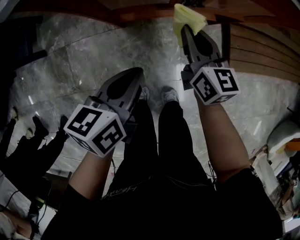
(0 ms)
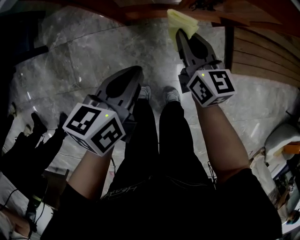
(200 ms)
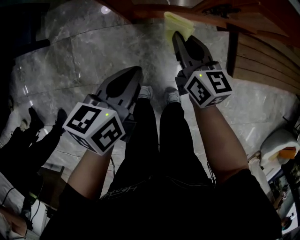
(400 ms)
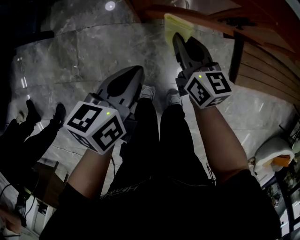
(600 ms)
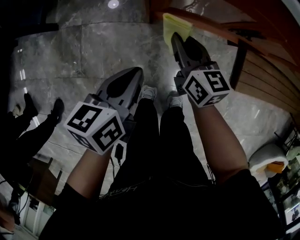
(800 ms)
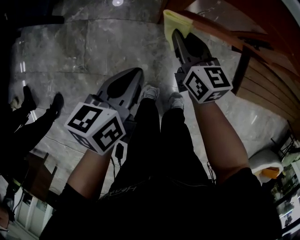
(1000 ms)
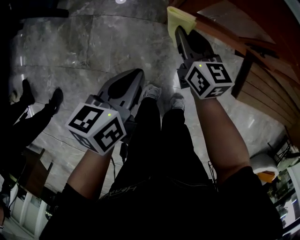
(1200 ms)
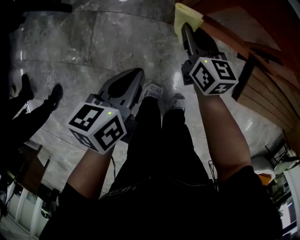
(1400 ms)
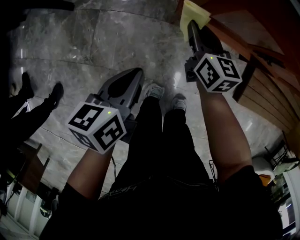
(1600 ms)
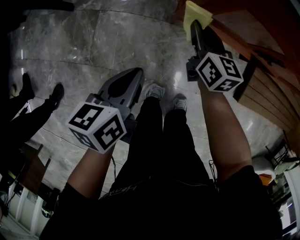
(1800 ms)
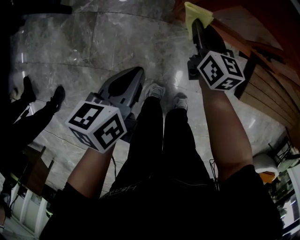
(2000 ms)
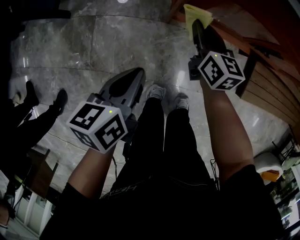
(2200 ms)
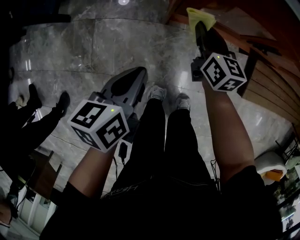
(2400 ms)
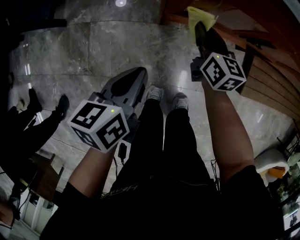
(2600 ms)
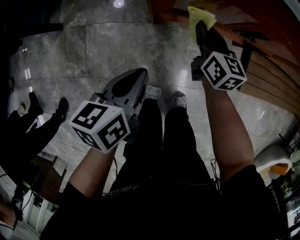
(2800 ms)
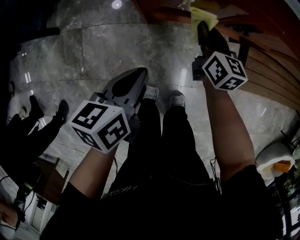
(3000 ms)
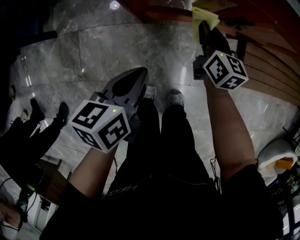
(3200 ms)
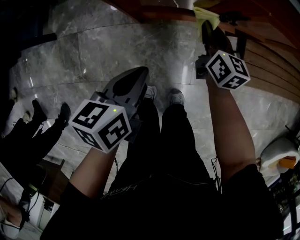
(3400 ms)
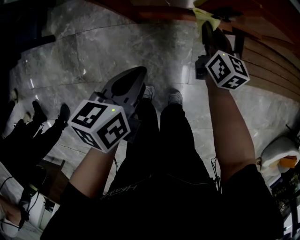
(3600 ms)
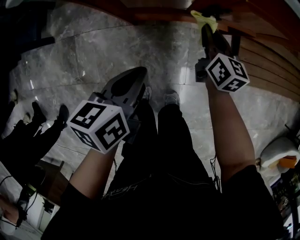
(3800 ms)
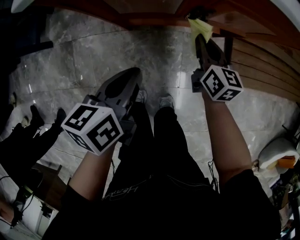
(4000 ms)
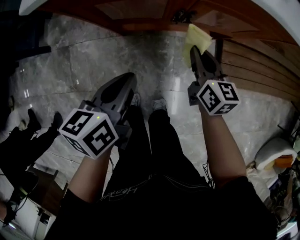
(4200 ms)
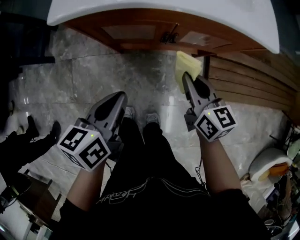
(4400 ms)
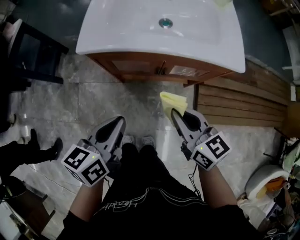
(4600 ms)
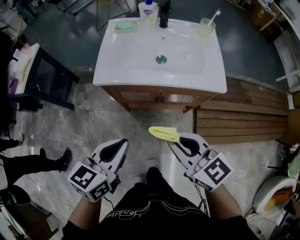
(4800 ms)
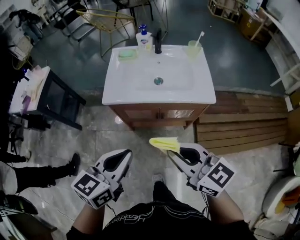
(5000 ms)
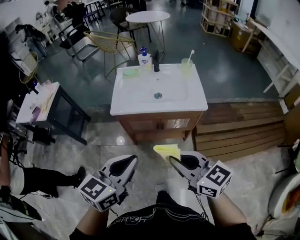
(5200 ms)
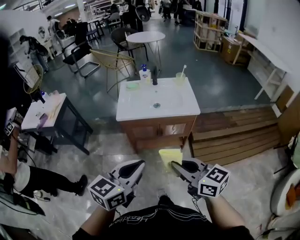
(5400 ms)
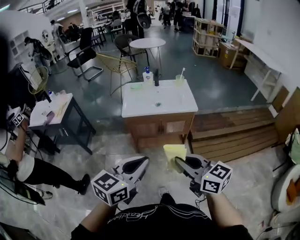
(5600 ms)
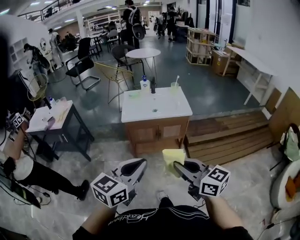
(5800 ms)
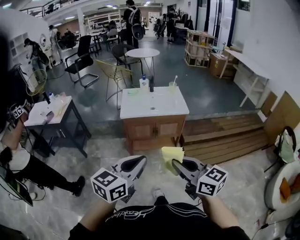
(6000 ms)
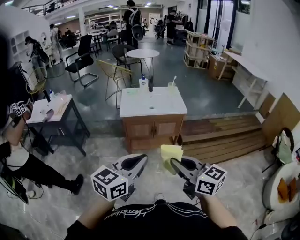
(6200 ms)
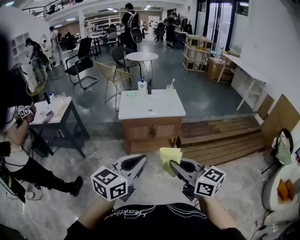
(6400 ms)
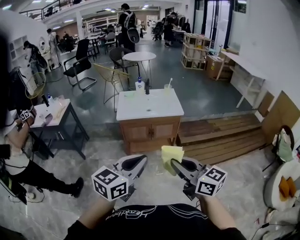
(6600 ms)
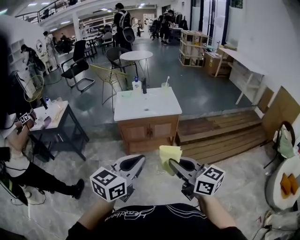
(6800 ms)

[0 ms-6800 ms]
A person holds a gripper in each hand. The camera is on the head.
0 ms to 1400 ms: Both grippers move to the left, approximately 20 cm. The right gripper turns by roughly 20 degrees; the left gripper changes its angle by some 20 degrees.
1400 ms to 2800 ms: The left gripper goes approximately 10 cm to the right. The right gripper shifts roughly 15 cm to the right.
2800 ms to 4000 ms: The two grippers go some 15 cm to the right.
4000 ms to 5400 ms: Both grippers move upward and backward, roughly 60 cm. The left gripper changes its angle by roughly 50 degrees; the right gripper rotates about 40 degrees.
5400 ms to 6800 ms: Both grippers travel together backward and upward, approximately 20 cm.

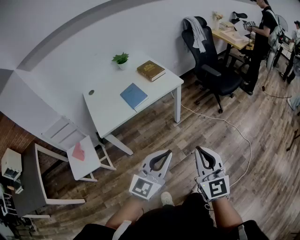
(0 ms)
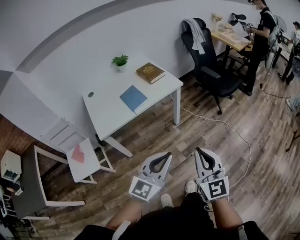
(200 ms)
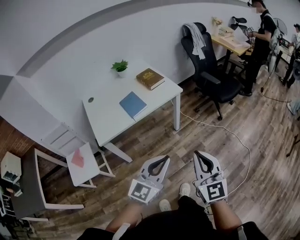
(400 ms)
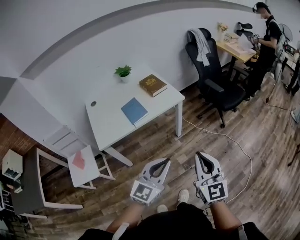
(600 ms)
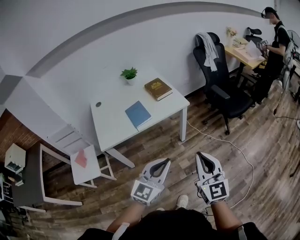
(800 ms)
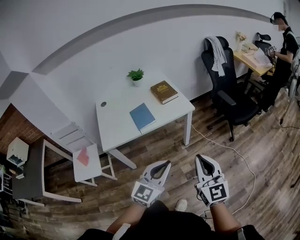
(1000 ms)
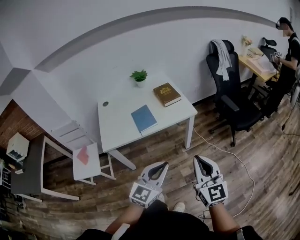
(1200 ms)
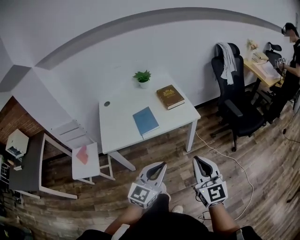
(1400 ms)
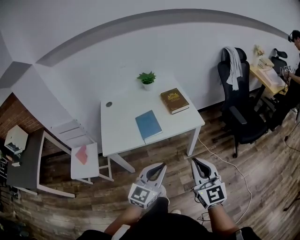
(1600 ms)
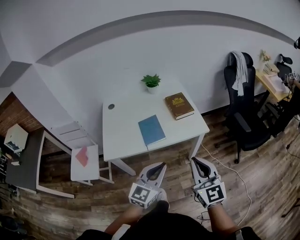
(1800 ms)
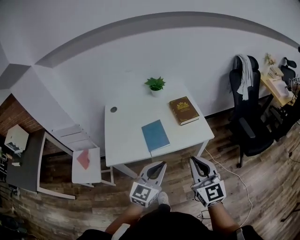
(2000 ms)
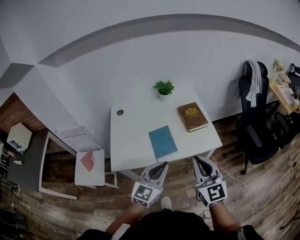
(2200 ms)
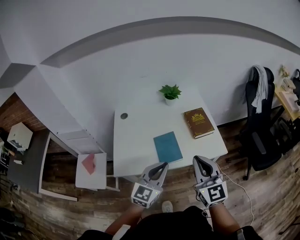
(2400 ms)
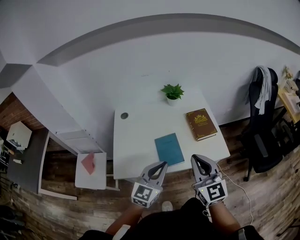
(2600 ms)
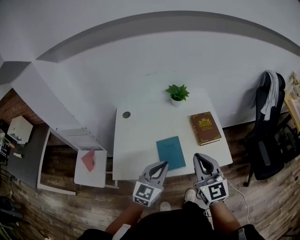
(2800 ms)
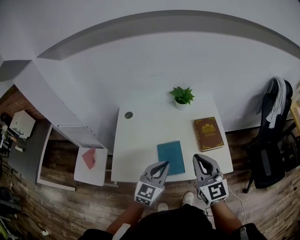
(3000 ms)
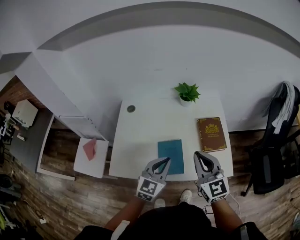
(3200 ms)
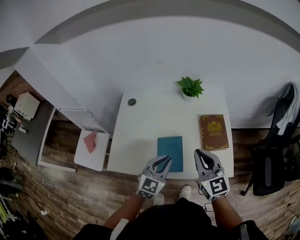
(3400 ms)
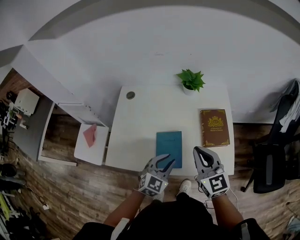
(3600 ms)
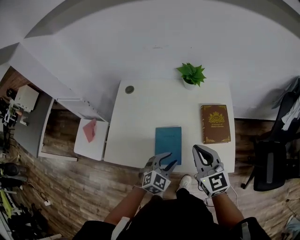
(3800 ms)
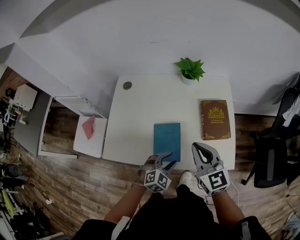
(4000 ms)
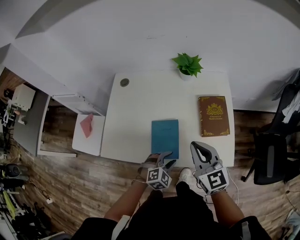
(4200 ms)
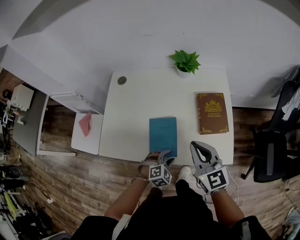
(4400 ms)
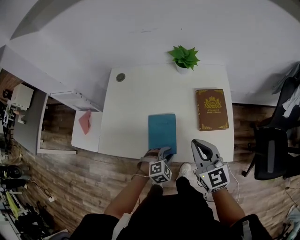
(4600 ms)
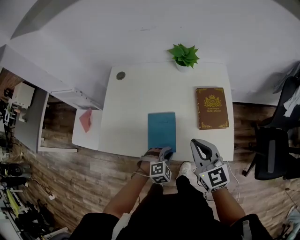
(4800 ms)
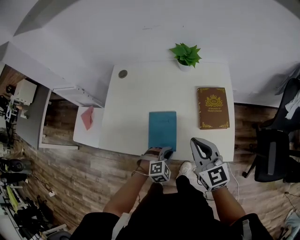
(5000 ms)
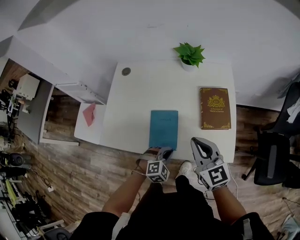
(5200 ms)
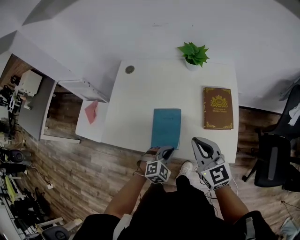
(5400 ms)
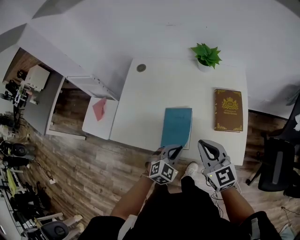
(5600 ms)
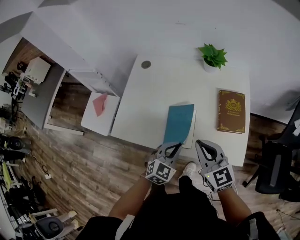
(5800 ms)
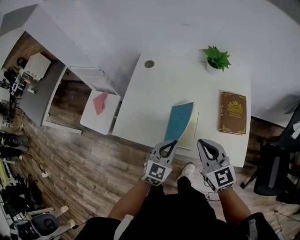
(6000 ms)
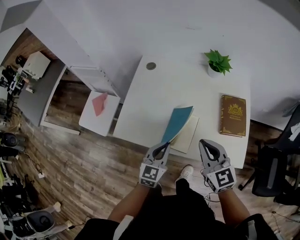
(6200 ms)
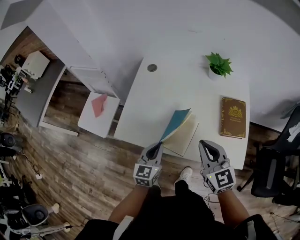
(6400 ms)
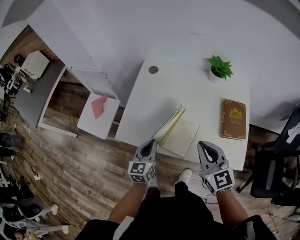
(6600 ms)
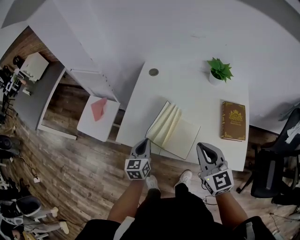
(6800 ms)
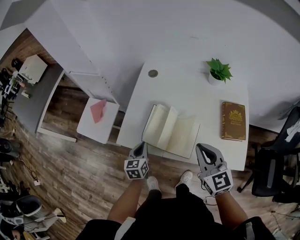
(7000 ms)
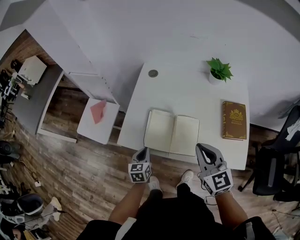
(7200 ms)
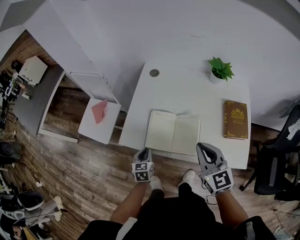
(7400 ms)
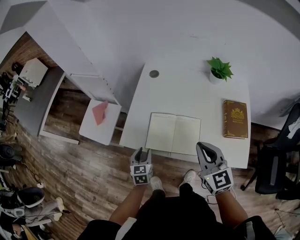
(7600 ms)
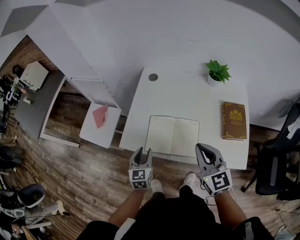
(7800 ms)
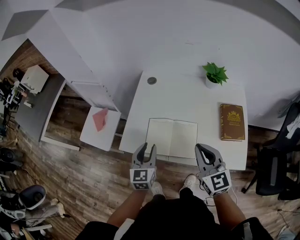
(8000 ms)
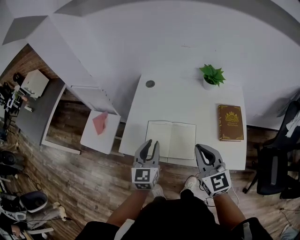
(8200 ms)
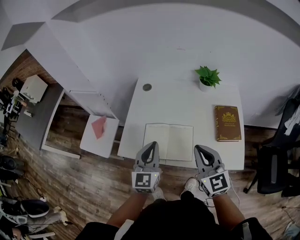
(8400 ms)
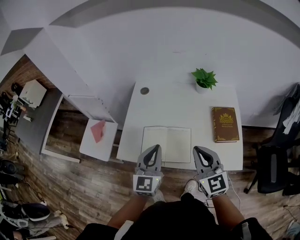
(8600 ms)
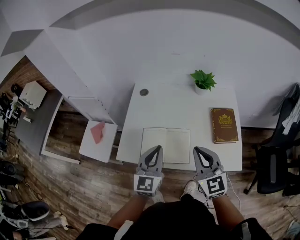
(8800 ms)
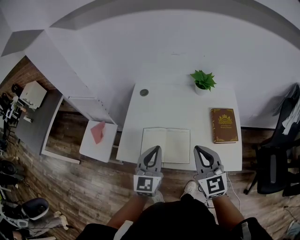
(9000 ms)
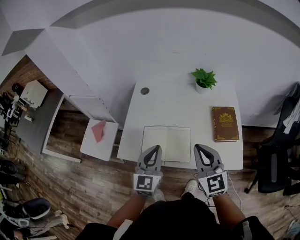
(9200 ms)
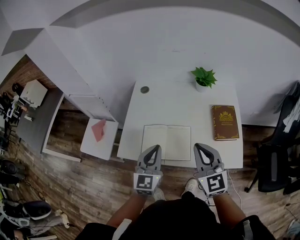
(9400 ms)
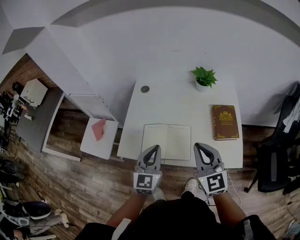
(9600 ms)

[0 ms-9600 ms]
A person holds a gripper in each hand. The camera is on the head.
0 ms to 1600 ms: Both grippers travel together forward, about 25 cm. The left gripper rotates some 20 degrees. Meanwhile the right gripper changes its angle by approximately 20 degrees.
1600 ms to 3200 ms: The grippers both shift forward by some 35 cm. The left gripper rotates roughly 20 degrees; the right gripper swivels roughly 20 degrees.
3200 ms to 4800 ms: The right gripper is displaced downward by about 10 cm; the left gripper shifts roughly 25 cm downward, angles its fingers downward, by roughly 40 degrees, and opens its fingers.
4800 ms to 6400 ms: The left gripper heads to the left and upward, covering some 20 cm, twists some 60 degrees counterclockwise, seen from behind, and closes up. Meanwhile the right gripper moves to the left, some 10 cm.
6400 ms to 8000 ms: The left gripper goes about 5 cm to the left, goes downward and returns, roughly 10 cm each way, and opens.
8000 ms to 9600 ms: The left gripper moves to the right and upward, about 10 cm, and closes up.

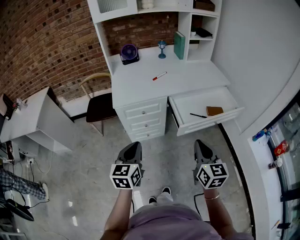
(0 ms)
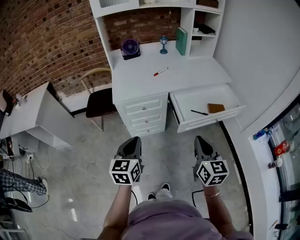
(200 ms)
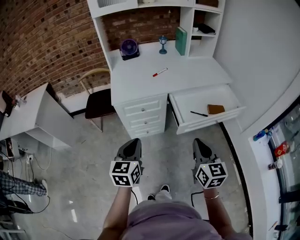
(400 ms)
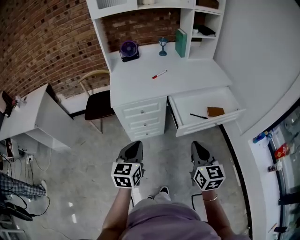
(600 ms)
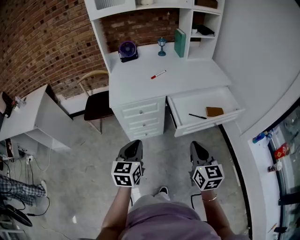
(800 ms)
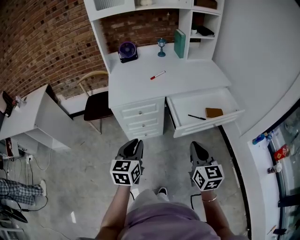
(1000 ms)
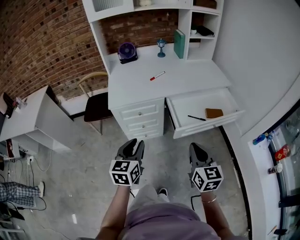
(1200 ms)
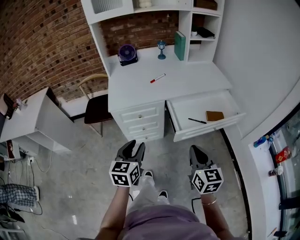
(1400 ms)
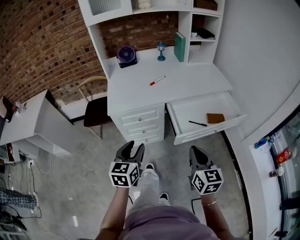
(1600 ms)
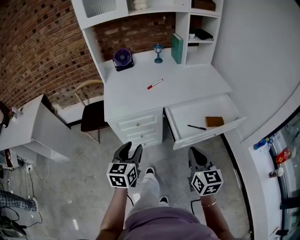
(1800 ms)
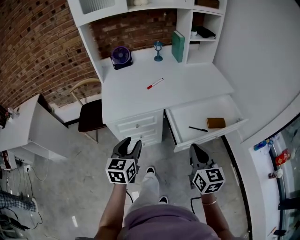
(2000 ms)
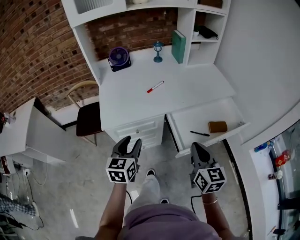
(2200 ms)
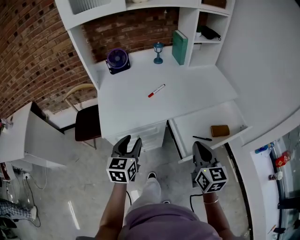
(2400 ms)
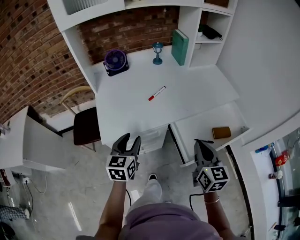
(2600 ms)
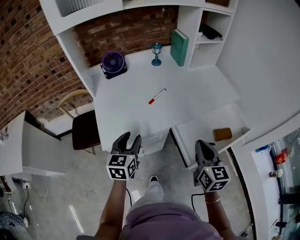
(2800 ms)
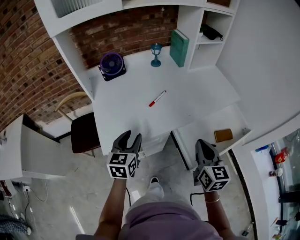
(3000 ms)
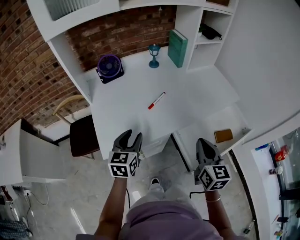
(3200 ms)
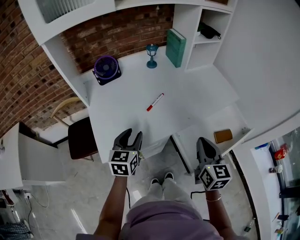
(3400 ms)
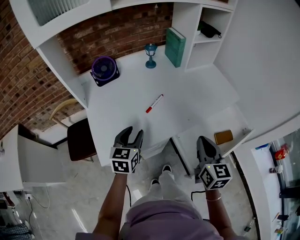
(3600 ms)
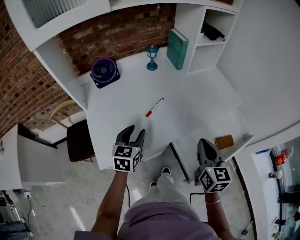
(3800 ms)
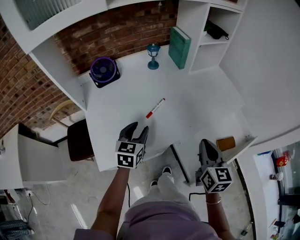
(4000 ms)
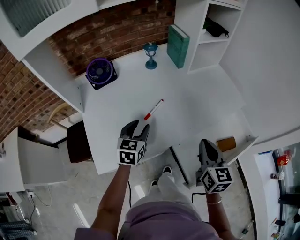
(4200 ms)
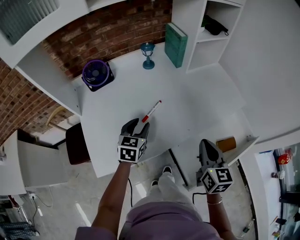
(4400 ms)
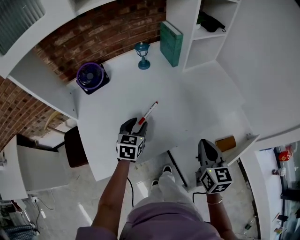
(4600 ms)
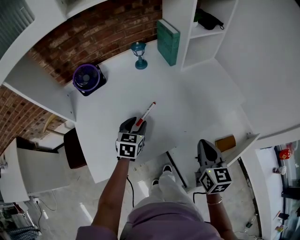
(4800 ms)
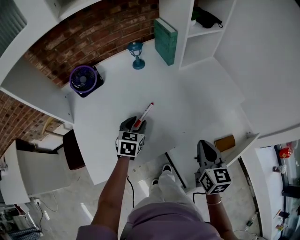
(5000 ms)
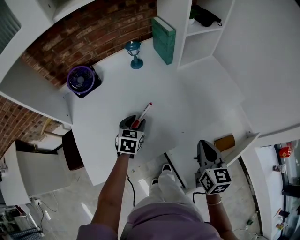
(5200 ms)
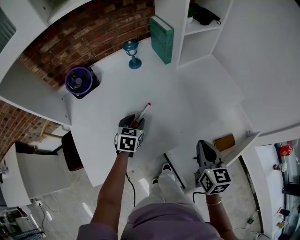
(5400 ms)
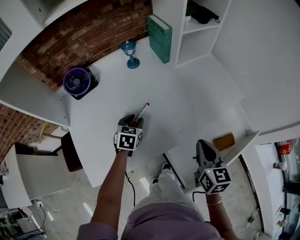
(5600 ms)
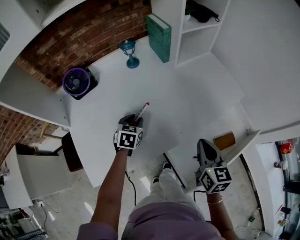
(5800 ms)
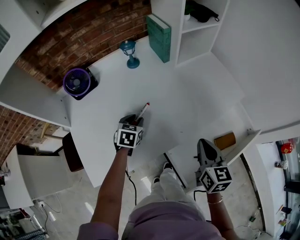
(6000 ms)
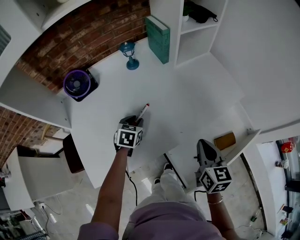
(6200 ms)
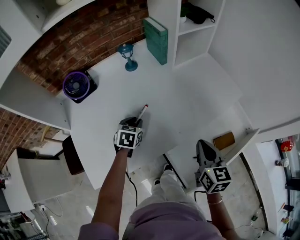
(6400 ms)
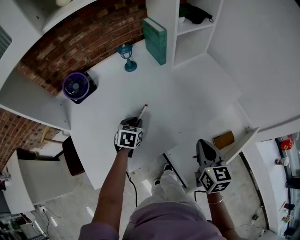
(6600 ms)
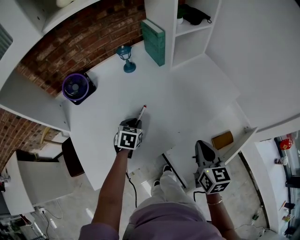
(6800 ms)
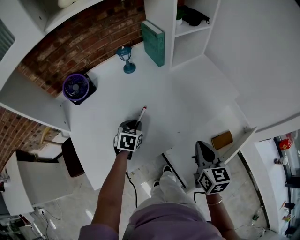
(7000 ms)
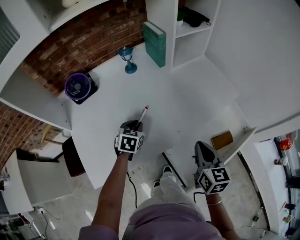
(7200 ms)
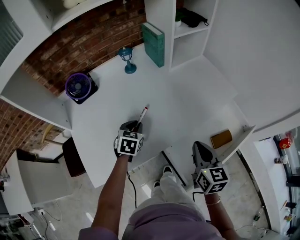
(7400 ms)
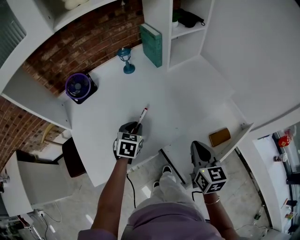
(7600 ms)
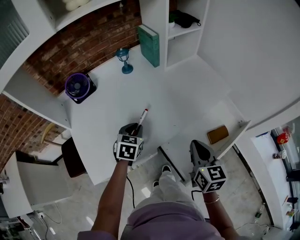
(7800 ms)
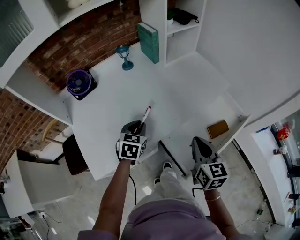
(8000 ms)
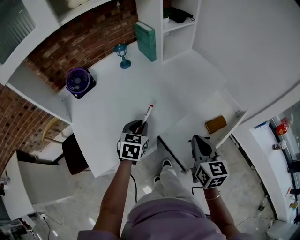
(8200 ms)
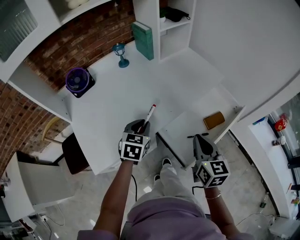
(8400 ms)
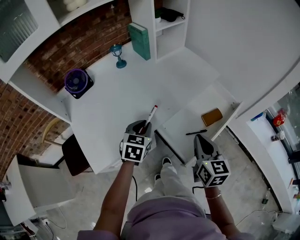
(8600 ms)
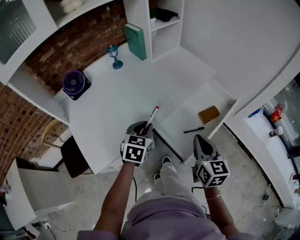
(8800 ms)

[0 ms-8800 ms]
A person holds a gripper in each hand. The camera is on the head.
0 ms to 1400 ms: The right gripper ends up roughly 5 cm from where it was; the left gripper goes approximately 5 cm forward, and opens up.
1400 ms to 3000 ms: Both grippers travel together forward, some 30 cm.
3000 ms to 4400 ms: The left gripper travels forward by some 20 cm. The right gripper heads forward, covering some 15 cm.
4400 ms to 5800 ms: The left gripper is displaced downward and forward by some 10 cm, while the right gripper moves approximately 5 cm.
5800 ms to 7400 ms: The left gripper moves about 5 cm.
7400 ms to 8800 ms: The left gripper goes approximately 20 cm backward, to the right and upward, while the right gripper goes about 15 cm backward.
